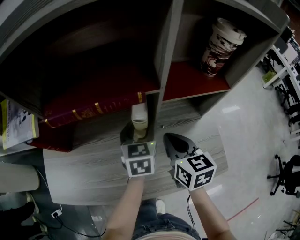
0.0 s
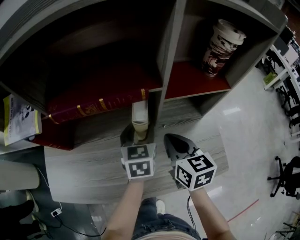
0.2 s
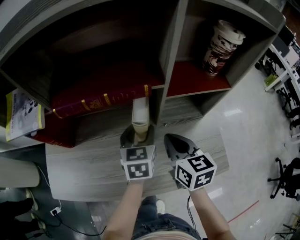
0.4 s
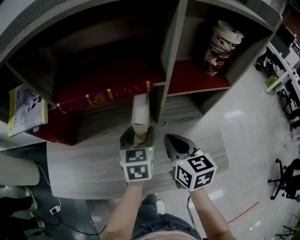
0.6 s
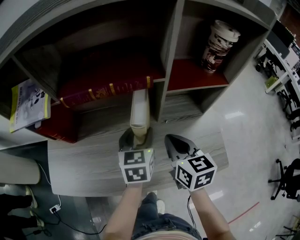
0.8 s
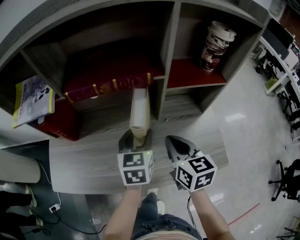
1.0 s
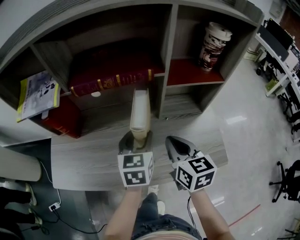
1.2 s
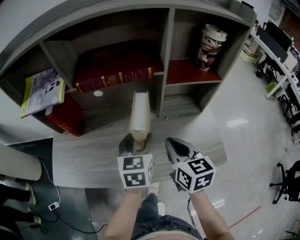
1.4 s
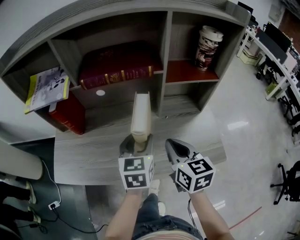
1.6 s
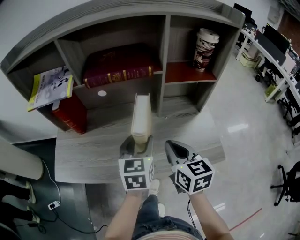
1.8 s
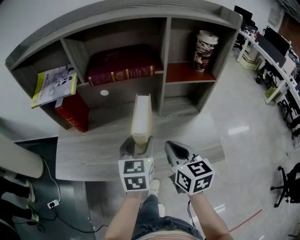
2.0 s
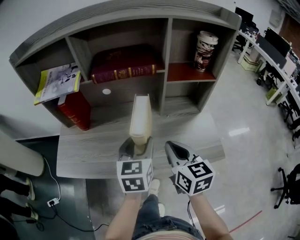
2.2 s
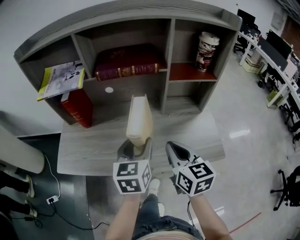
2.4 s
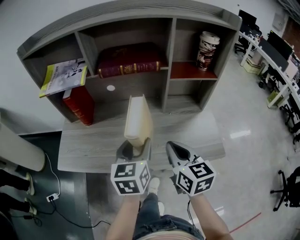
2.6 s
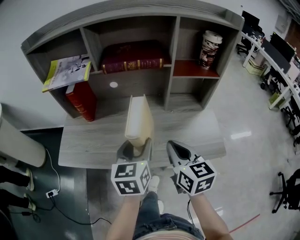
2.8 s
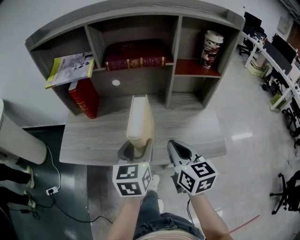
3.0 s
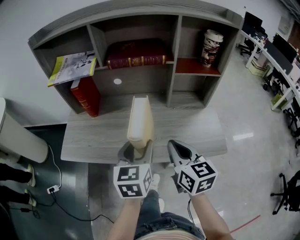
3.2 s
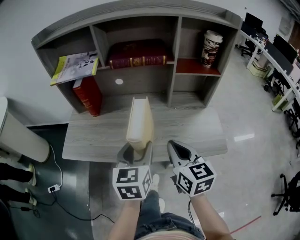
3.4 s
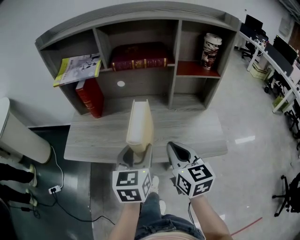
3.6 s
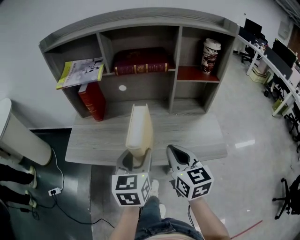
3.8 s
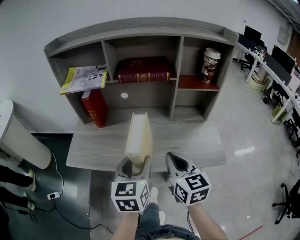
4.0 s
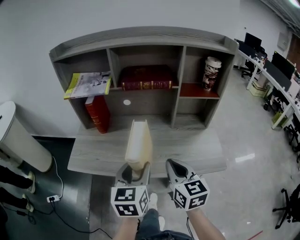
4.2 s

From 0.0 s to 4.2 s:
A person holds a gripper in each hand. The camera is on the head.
From 0.0 s to 1.4 s: The two grippers go approximately 10 cm backward.
From 1.4 s to 2.8 s: Both grippers move backward, roughly 10 cm.
From 2.8 s to 4.2 s: The right gripper ends up about 5 cm from where it was, while the left gripper goes some 10 cm backward.

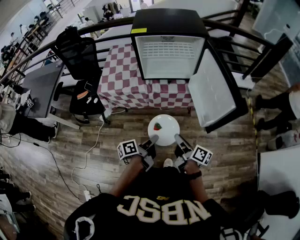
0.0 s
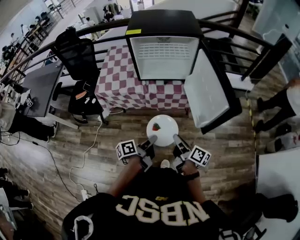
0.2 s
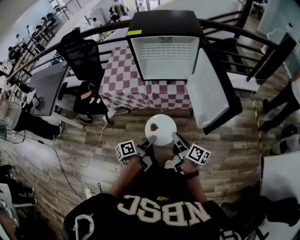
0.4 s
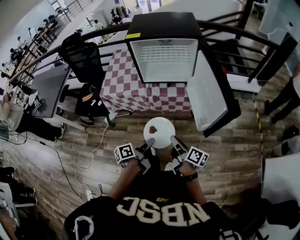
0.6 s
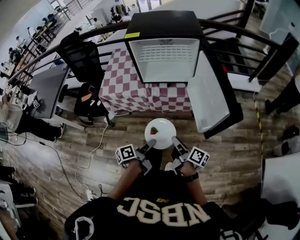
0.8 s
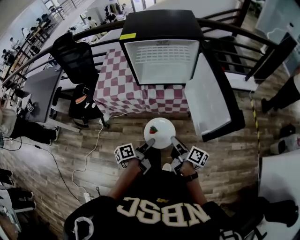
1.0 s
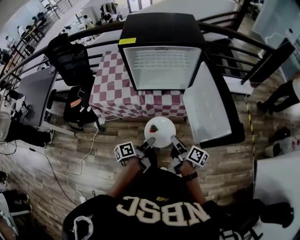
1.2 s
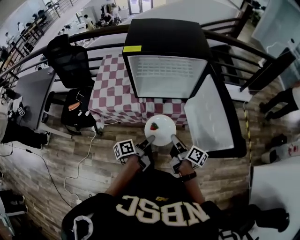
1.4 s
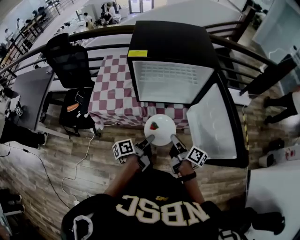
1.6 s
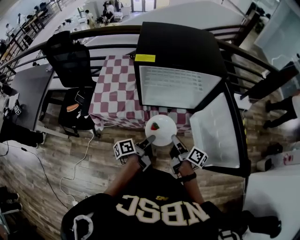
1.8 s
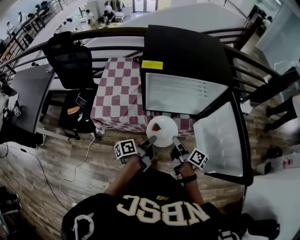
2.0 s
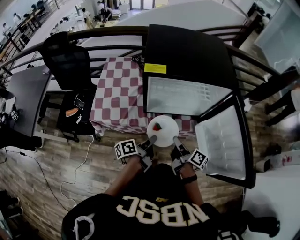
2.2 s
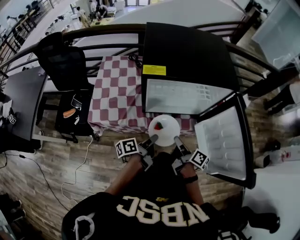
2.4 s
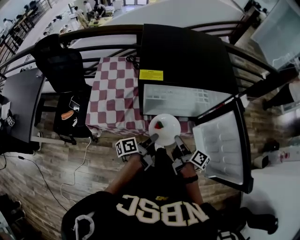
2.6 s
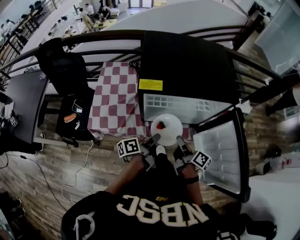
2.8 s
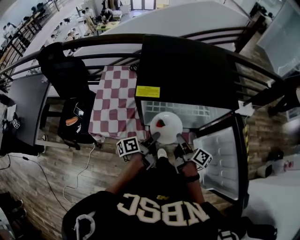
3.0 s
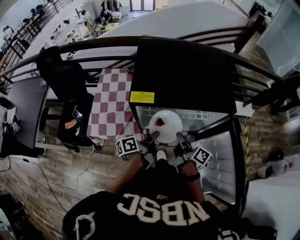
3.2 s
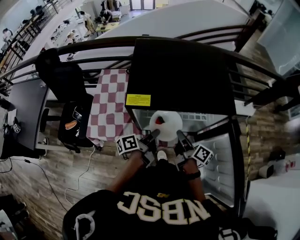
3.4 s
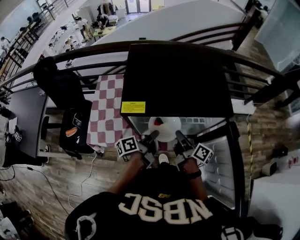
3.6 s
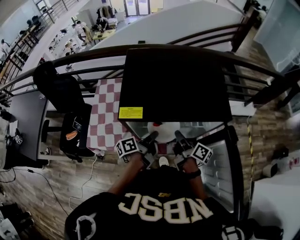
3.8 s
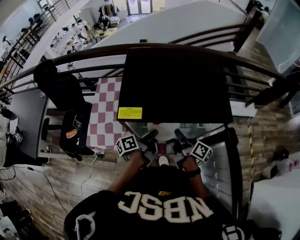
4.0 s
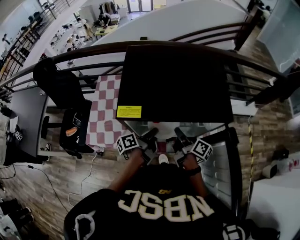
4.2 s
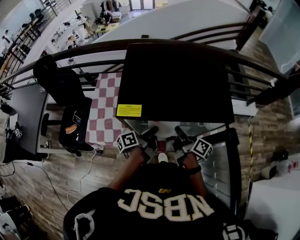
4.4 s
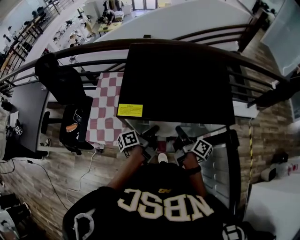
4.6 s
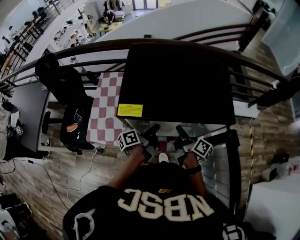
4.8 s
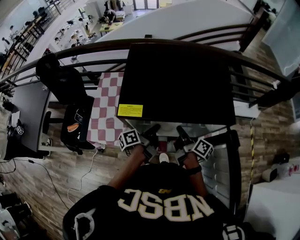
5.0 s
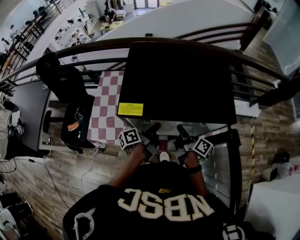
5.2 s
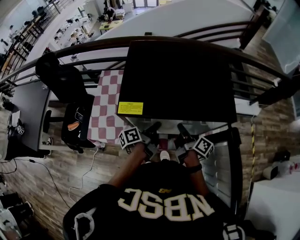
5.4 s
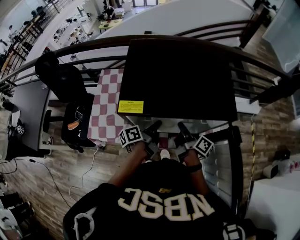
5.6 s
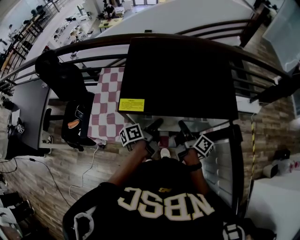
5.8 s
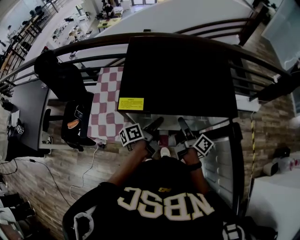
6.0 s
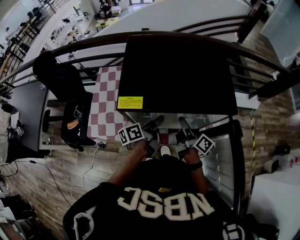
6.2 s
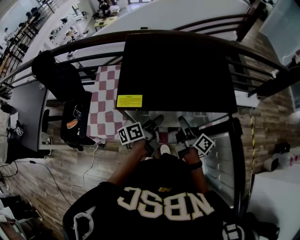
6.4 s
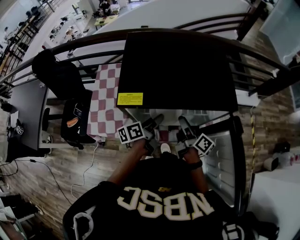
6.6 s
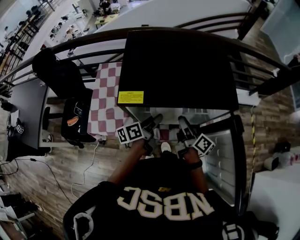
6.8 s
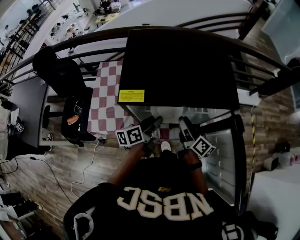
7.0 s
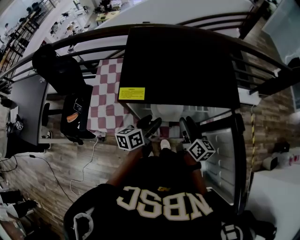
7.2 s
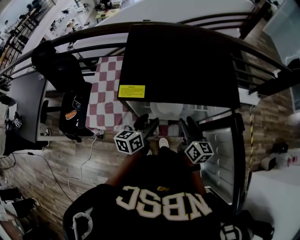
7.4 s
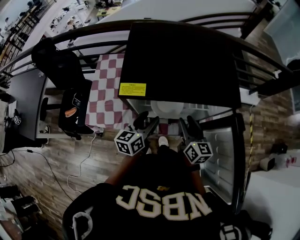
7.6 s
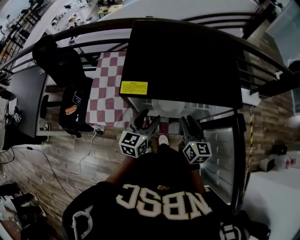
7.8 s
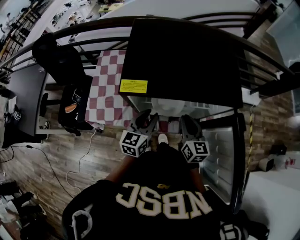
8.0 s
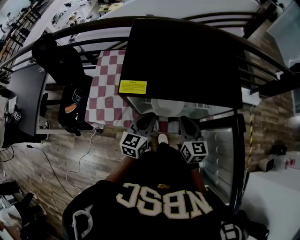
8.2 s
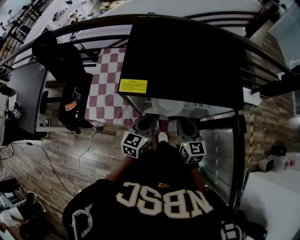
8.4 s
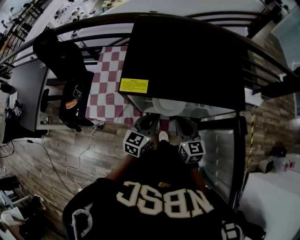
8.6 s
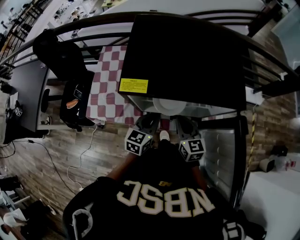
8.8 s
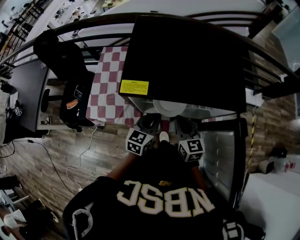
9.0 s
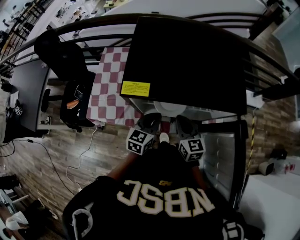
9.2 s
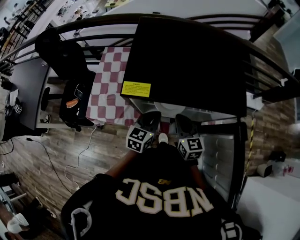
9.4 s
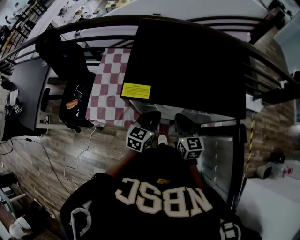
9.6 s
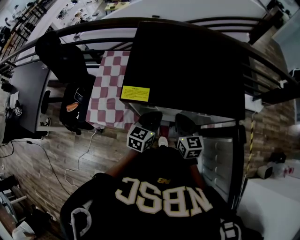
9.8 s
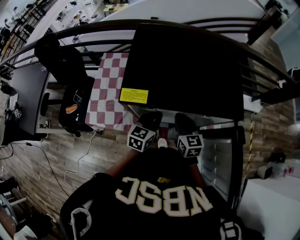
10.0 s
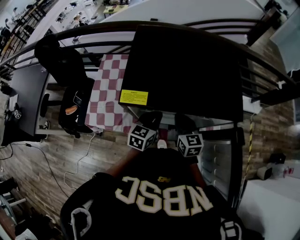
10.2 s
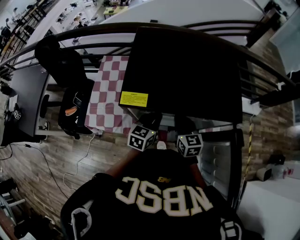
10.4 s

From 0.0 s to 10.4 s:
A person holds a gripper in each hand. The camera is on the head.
From 0.0 s to 1.4 s: Both grippers move forward, approximately 15 cm.
From 1.4 s to 3.0 s: The two grippers go some 20 cm forward.
From 3.0 s to 4.4 s: The two grippers go approximately 10 cm forward.
From 4.4 s to 6.0 s: The right gripper opens its fingers. The left gripper opens up.
From 6.0 s to 7.4 s: The left gripper ends up some 5 cm from where it was, swivels roughly 40 degrees, and opens. The right gripper moves roughly 5 cm, and rotates around the line of its fingers by about 40 degrees, counterclockwise from behind.
From 7.4 s to 9.0 s: The right gripper moves approximately 5 cm, changes its angle by roughly 30 degrees, and closes up; the left gripper changes its angle by approximately 20 degrees, and closes.
From 9.0 s to 10.4 s: Both grippers move forward, roughly 5 cm.

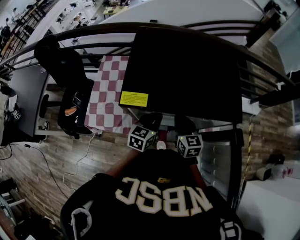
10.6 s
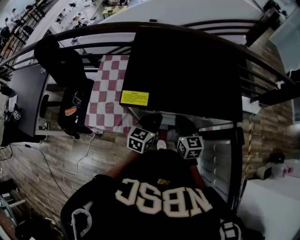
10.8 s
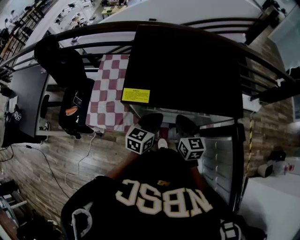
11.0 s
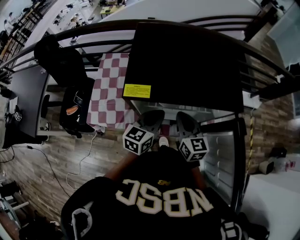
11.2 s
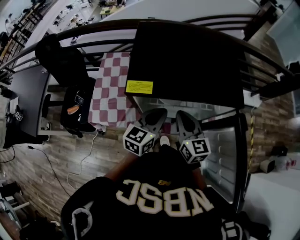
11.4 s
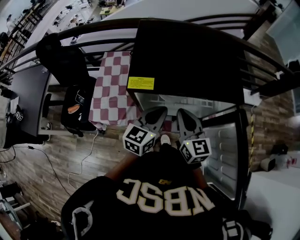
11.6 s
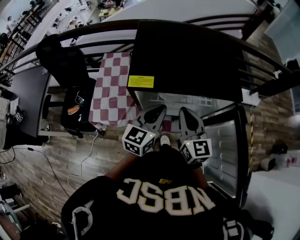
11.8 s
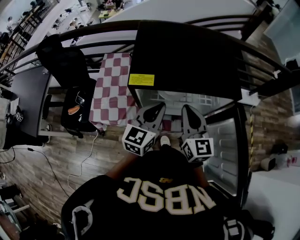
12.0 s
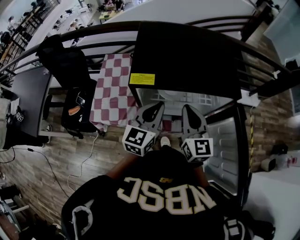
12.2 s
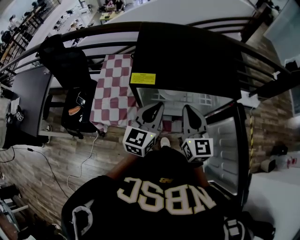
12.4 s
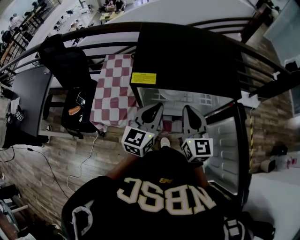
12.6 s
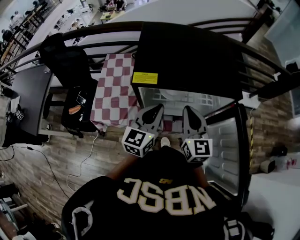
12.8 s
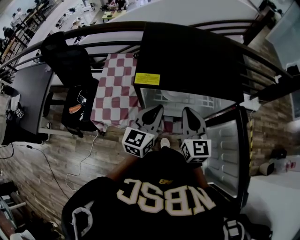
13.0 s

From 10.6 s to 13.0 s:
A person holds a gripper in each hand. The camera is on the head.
From 10.6 s to 11.8 s: The two grippers go about 15 cm upward and backward.
From 11.8 s to 13.0 s: There are only small adjustments of the grippers.

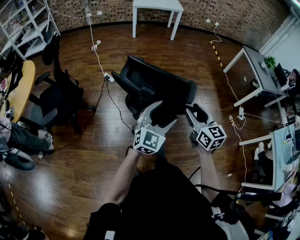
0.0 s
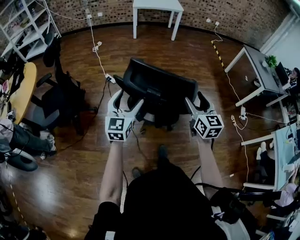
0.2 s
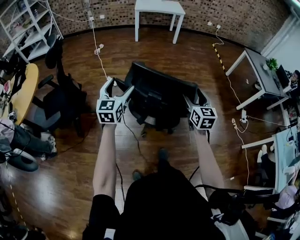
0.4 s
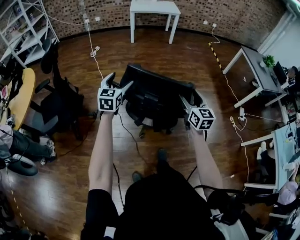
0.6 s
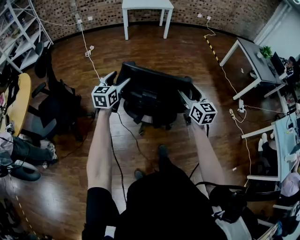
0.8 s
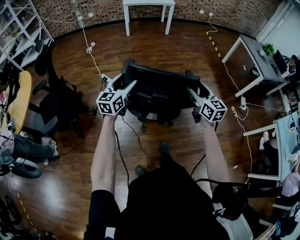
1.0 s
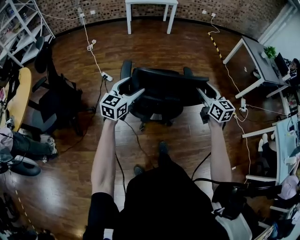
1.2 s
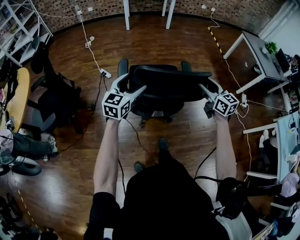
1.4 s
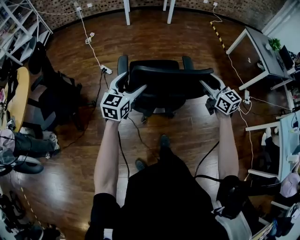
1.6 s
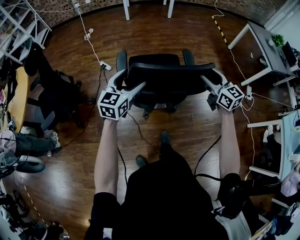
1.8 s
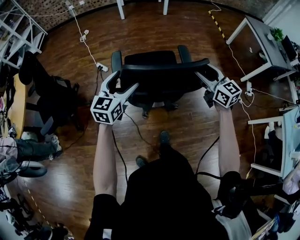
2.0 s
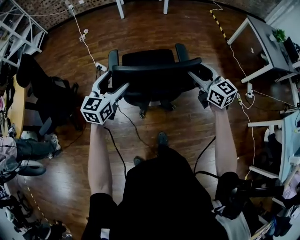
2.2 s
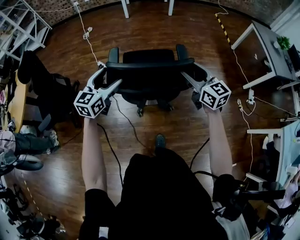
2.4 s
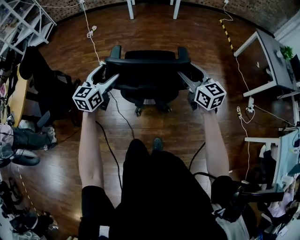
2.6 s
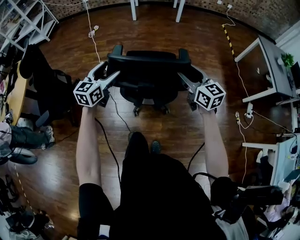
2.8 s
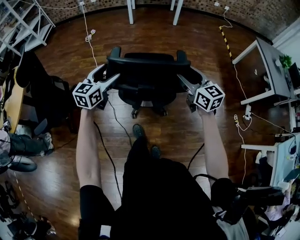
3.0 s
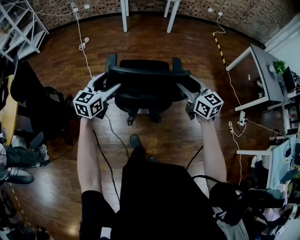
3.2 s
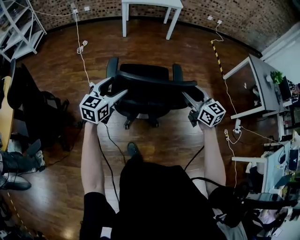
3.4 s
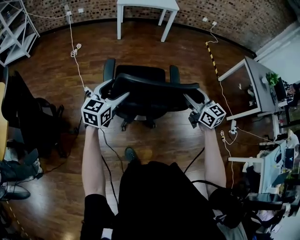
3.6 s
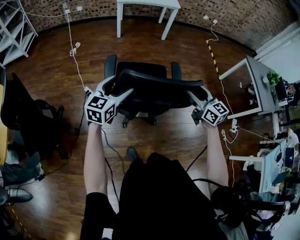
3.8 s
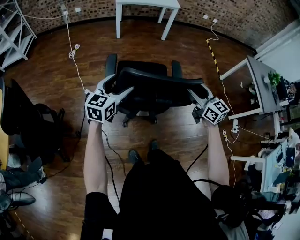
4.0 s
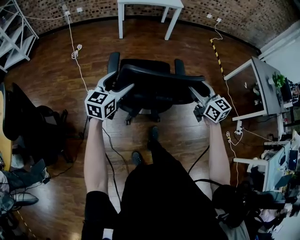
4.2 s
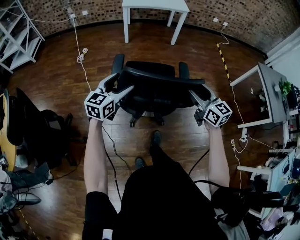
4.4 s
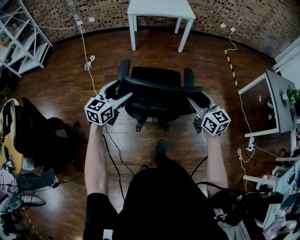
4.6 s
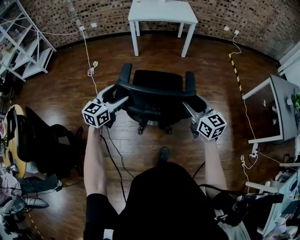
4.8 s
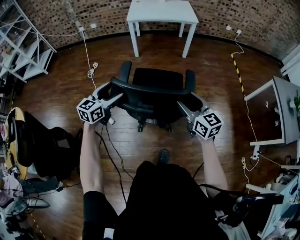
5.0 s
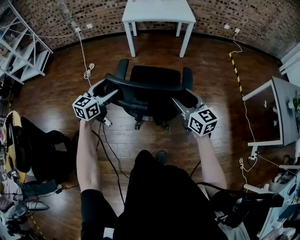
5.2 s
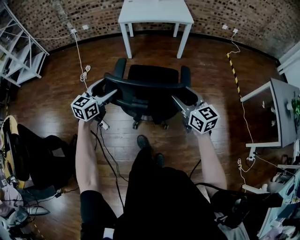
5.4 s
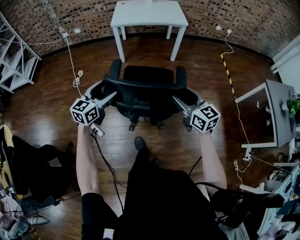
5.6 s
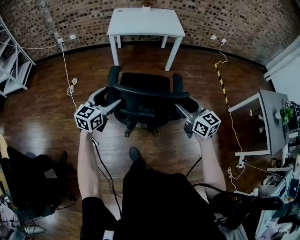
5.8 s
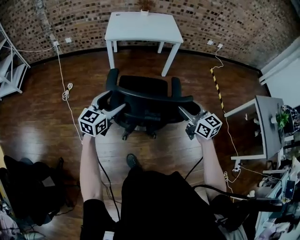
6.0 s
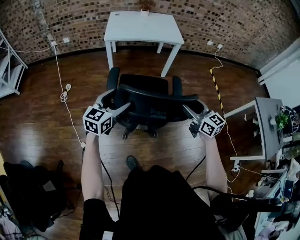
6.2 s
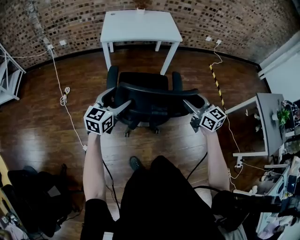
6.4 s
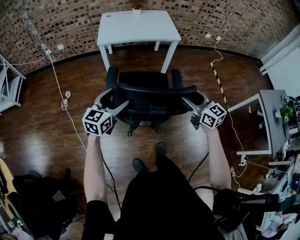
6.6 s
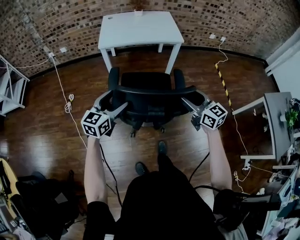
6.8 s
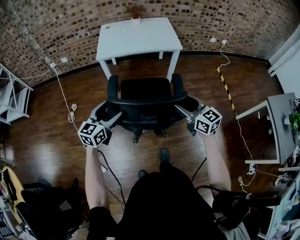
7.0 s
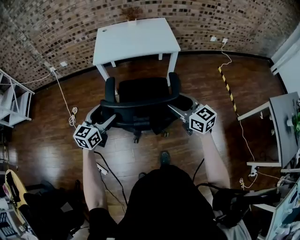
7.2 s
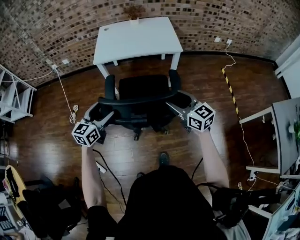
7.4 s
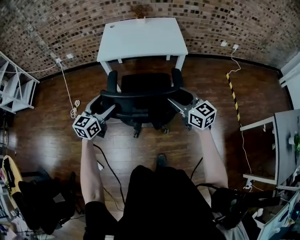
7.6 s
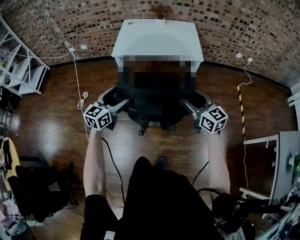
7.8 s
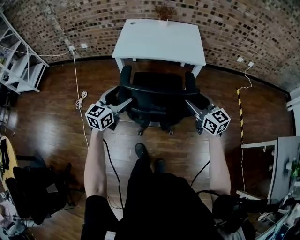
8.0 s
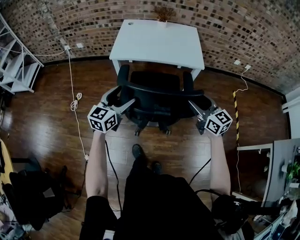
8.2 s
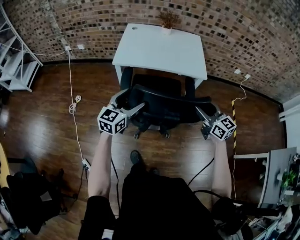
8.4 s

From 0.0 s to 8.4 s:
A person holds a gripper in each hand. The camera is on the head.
From 0.0 s to 1.4 s: The right gripper goes about 20 cm forward and to the right, while the left gripper shifts some 20 cm forward and to the left, and rotates approximately 30 degrees.
From 1.4 s to 2.8 s: The two grippers go roughly 20 cm forward.
From 2.8 s to 4.2 s: The two grippers go some 25 cm forward.
From 4.2 s to 5.6 s: The two grippers go about 30 cm forward.
From 5.6 s to 7.0 s: The two grippers go approximately 20 cm forward.
From 7.0 s to 8.4 s: Both grippers move forward, about 25 cm.
